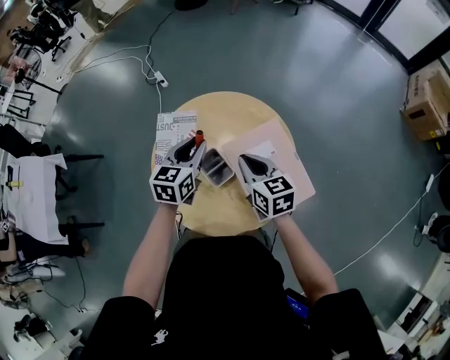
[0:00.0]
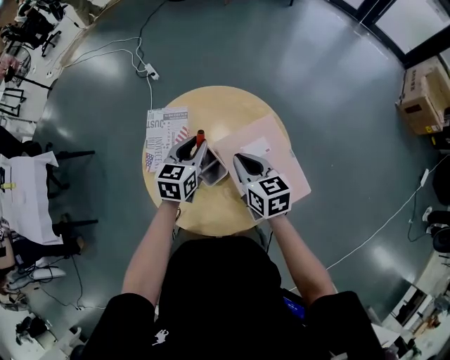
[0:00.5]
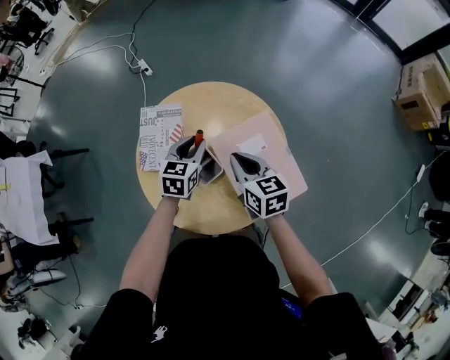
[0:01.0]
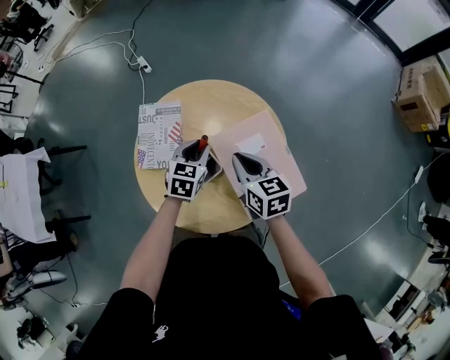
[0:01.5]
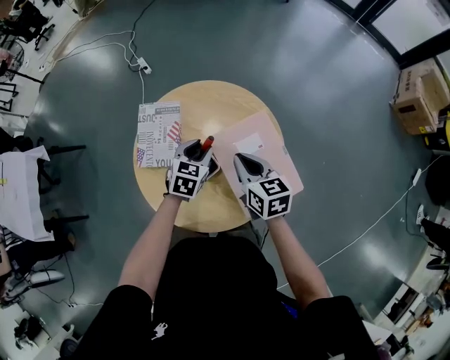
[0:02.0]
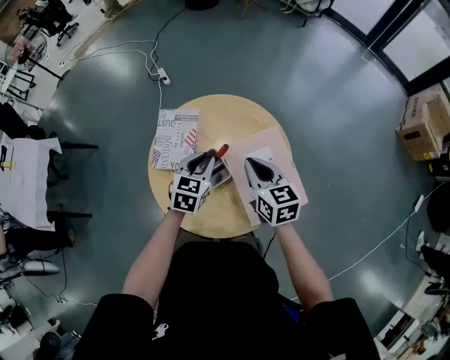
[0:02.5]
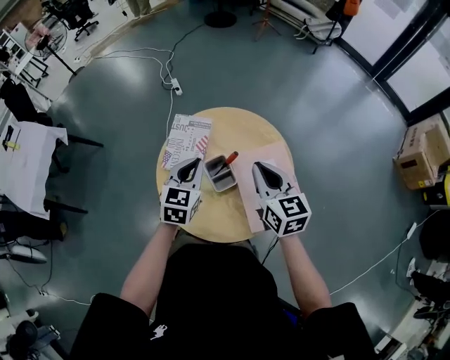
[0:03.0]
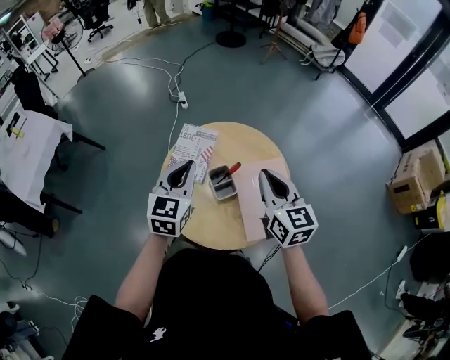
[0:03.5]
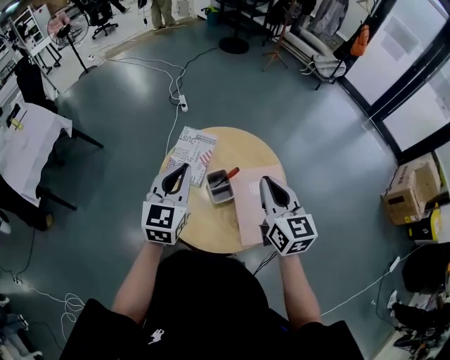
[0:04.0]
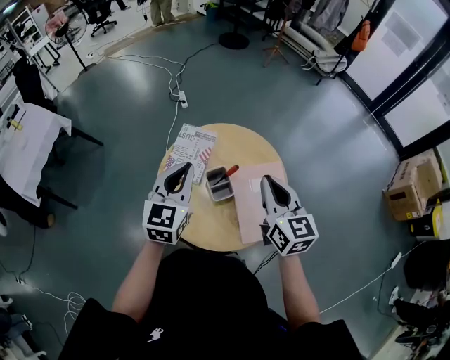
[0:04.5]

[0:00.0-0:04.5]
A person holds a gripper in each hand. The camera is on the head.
0:00.0 to 0:02.0: The left gripper heads downward, covering approximately 10 cm.
0:02.0 to 0:04.5: The left gripper heads upward and to the left, covering roughly 30 cm, tilts its fingers roughly 30 degrees upward, and closes. The right gripper travels upward by roughly 20 cm, and turns by some 30 degrees.

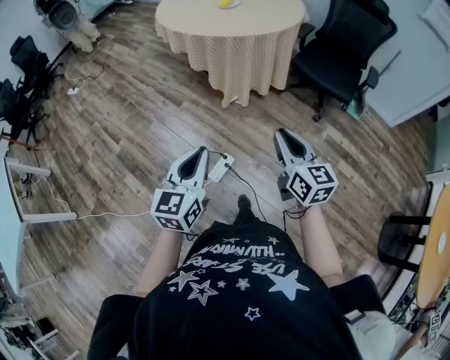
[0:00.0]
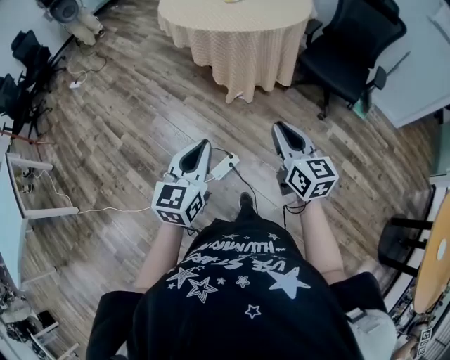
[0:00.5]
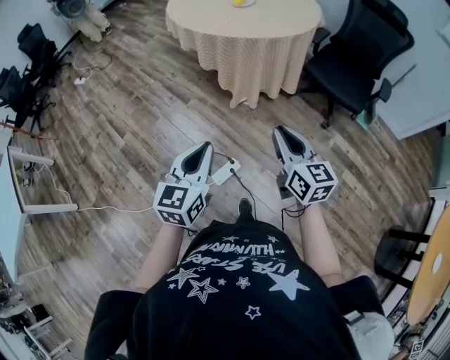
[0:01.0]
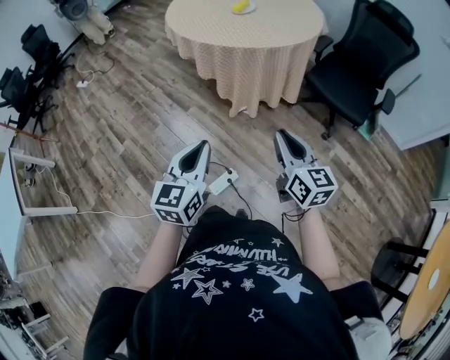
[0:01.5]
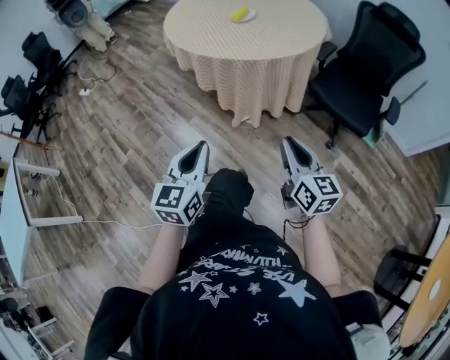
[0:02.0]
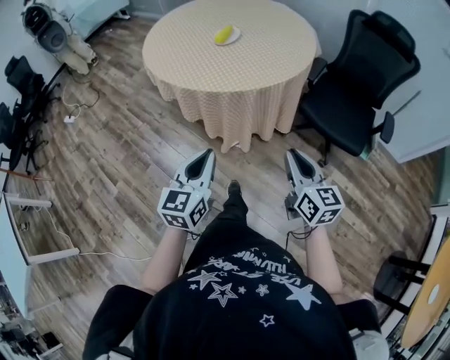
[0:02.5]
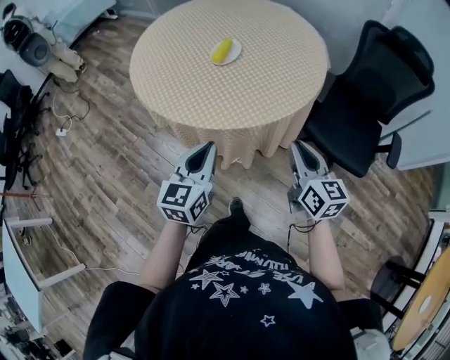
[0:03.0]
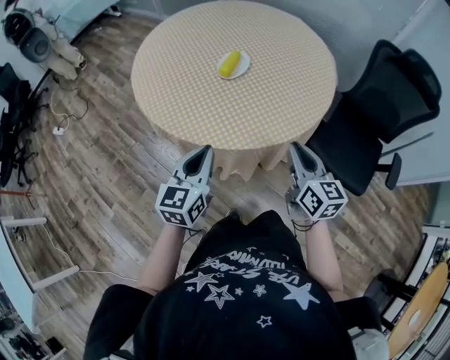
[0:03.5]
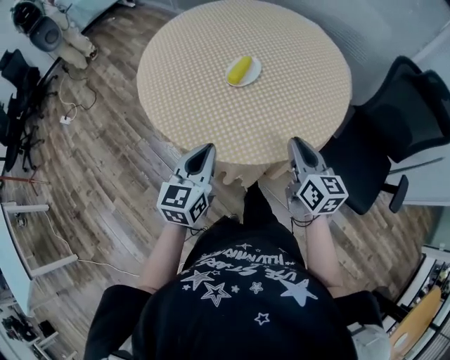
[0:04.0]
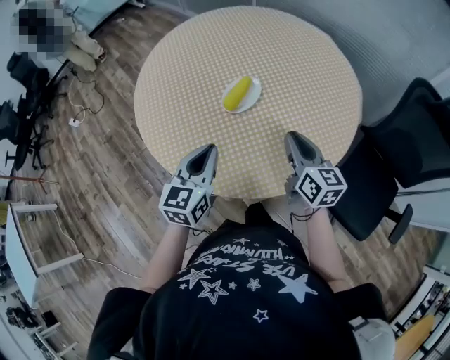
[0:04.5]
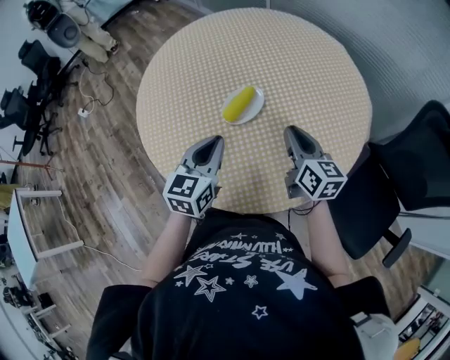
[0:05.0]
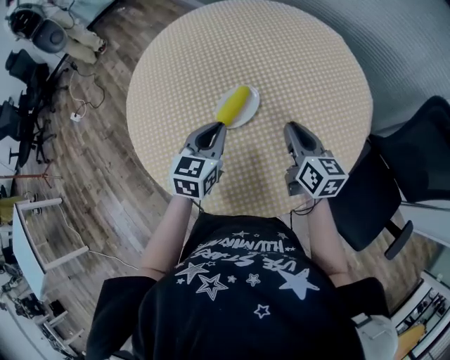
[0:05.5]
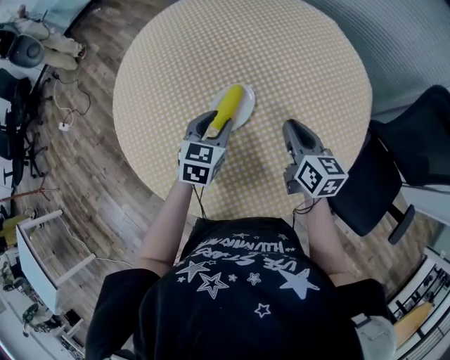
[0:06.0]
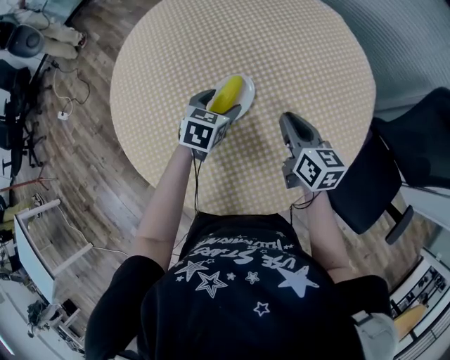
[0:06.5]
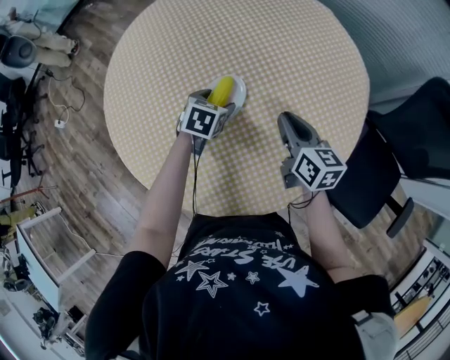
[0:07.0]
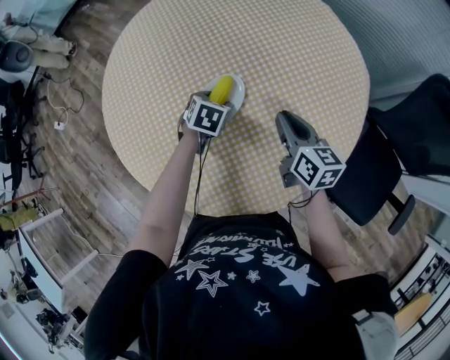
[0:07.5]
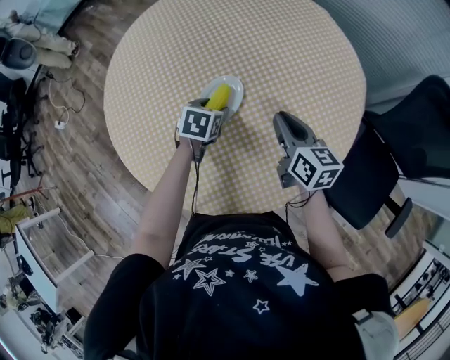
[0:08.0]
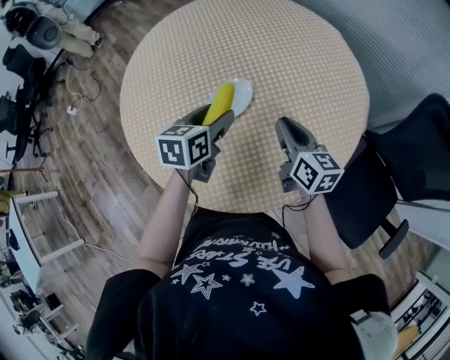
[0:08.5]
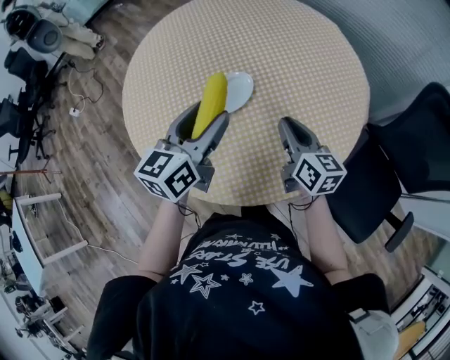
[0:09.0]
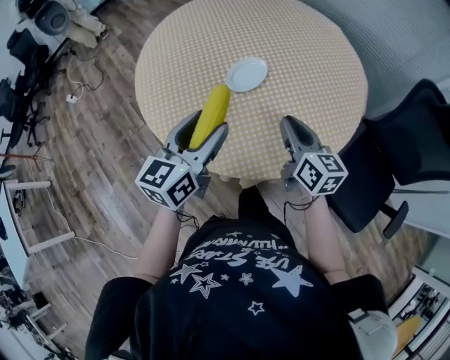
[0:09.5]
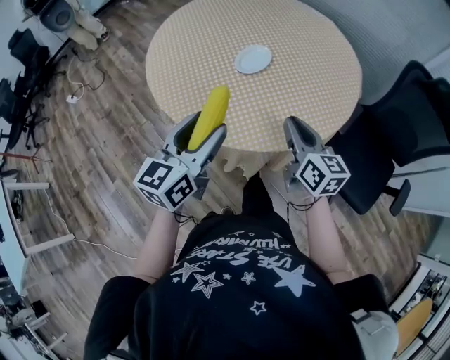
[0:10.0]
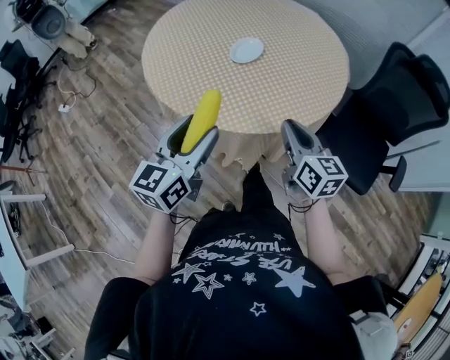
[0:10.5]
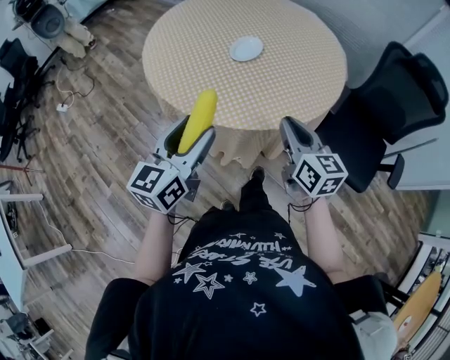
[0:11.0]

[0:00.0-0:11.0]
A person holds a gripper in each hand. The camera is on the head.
0:00.0 to 0:02.0: Both grippers travel together forward, about 20 cm.
0:02.0 to 0:03.5: Both grippers are carried forward, some 40 cm.
0:03.5 to 0:05.5: The grippers both shift forward by roughly 30 cm.
0:05.5 to 0:07.5: The left gripper travels downward and forward by about 20 cm, tips its fingers downward by approximately 40 degrees, and opens its fingers; the right gripper moves approximately 5 cm.
0:07.5 to 0:09.0: The right gripper moves backward, some 5 cm. The left gripper is displaced upward and backward by about 30 cm, and points its fingers roughly 50 degrees further upward.
0:09.0 to 0:11.0: The right gripper travels backward by some 30 cm; the left gripper heads backward and to the left, covering some 35 cm.

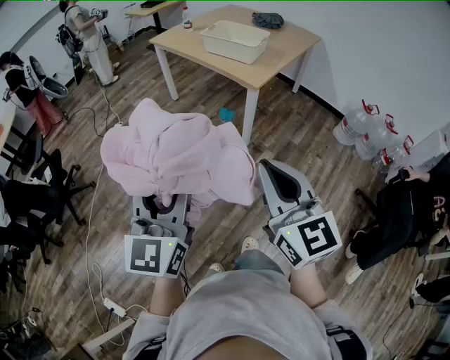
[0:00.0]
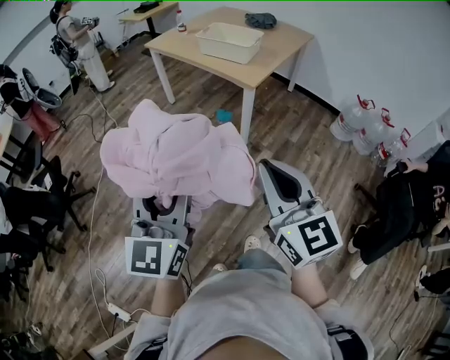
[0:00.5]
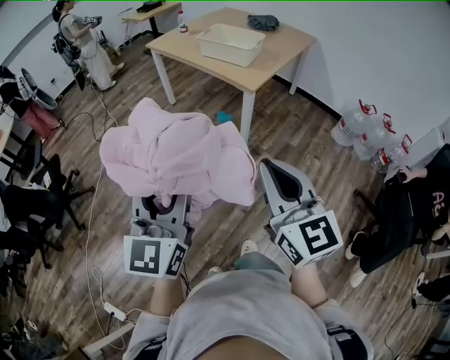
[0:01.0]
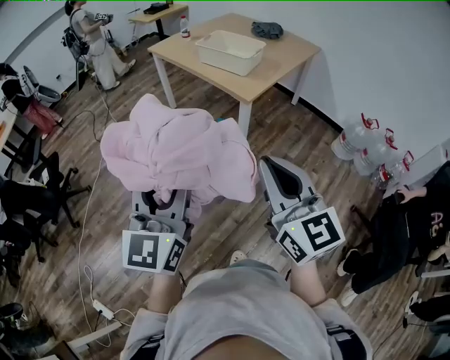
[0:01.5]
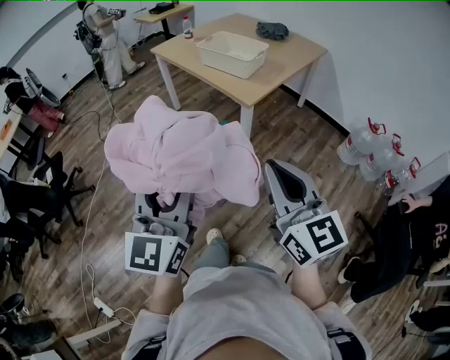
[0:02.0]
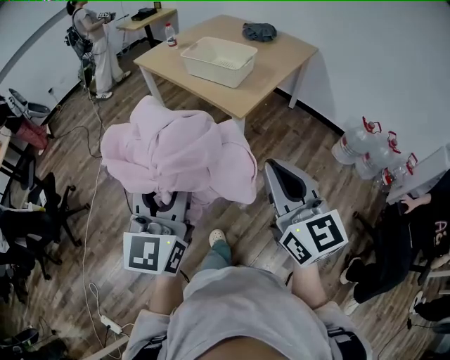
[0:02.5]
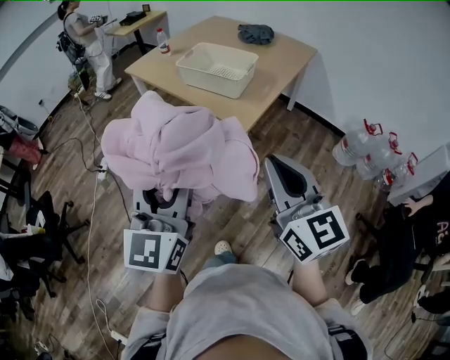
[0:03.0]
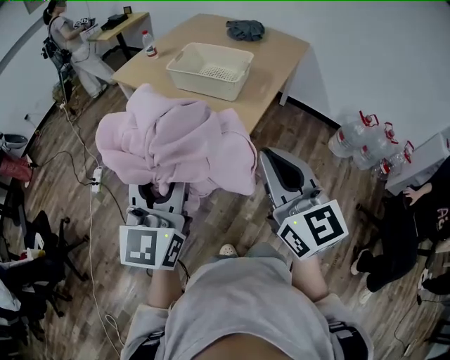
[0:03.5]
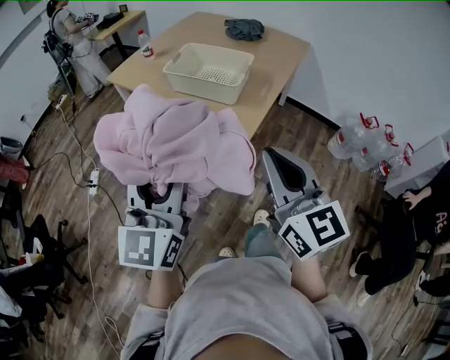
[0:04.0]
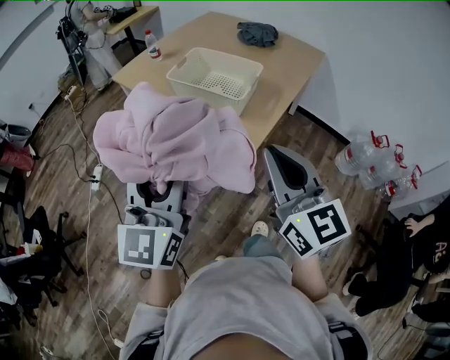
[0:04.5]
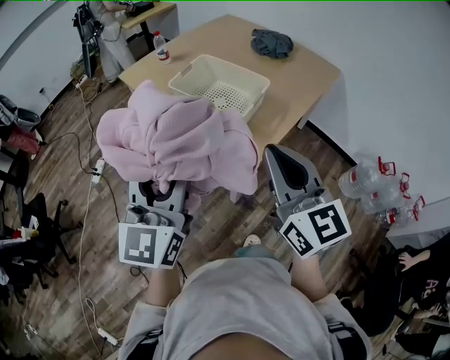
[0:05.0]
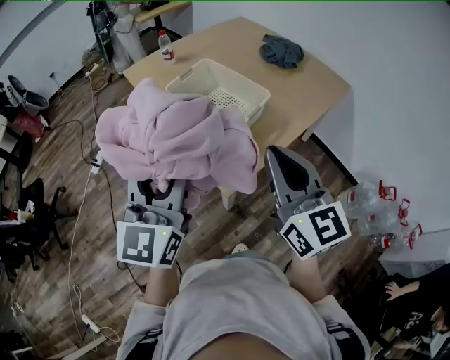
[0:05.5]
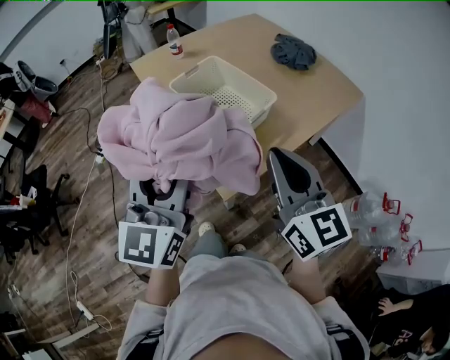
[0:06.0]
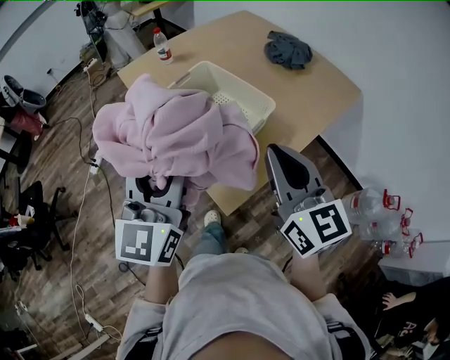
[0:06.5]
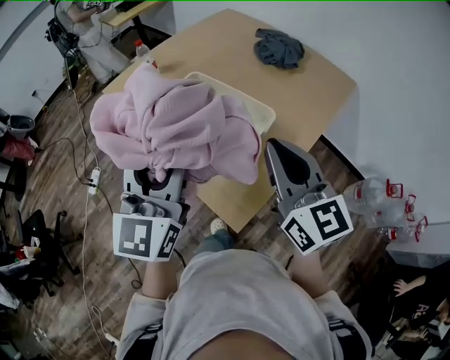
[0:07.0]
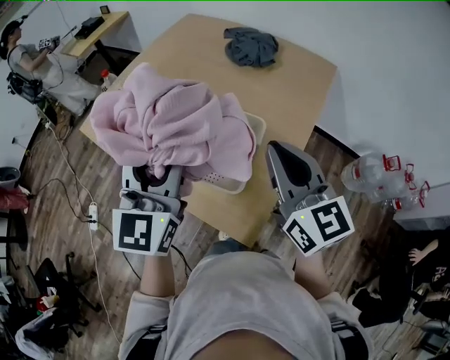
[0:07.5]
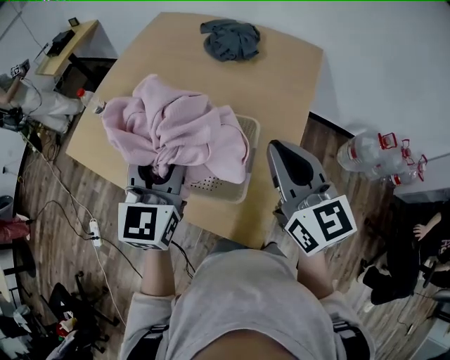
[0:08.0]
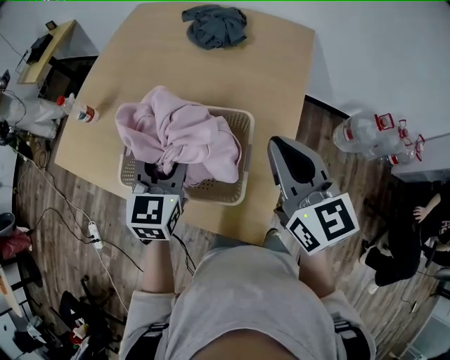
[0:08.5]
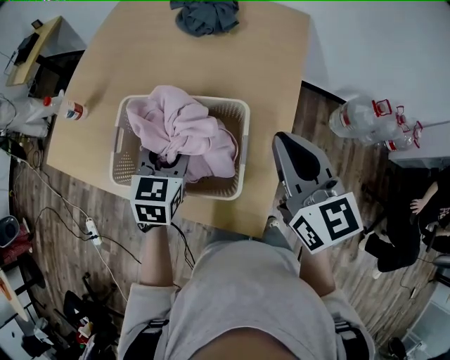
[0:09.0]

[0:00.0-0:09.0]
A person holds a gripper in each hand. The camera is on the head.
0:00.0 to 0:02.0: Both grippers move to the right and forward, roughly 15 cm.
0:02.0 to 0:04.5: The grippers both shift forward by some 35 cm.
0:04.5 to 0:07.0: Both grippers travel together forward, approximately 30 cm.
0:07.0 to 0:09.0: The right gripper moves about 15 cm, and rotates about 30 degrees. Meanwhile the left gripper travels downward by approximately 25 cm, and tips its fingers downward by some 40 degrees.

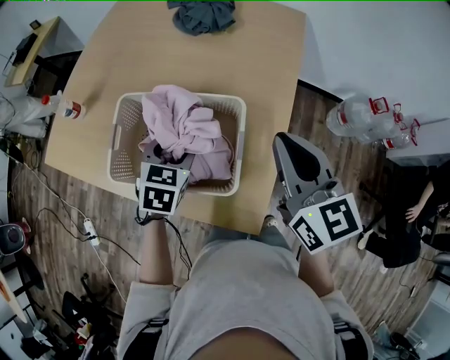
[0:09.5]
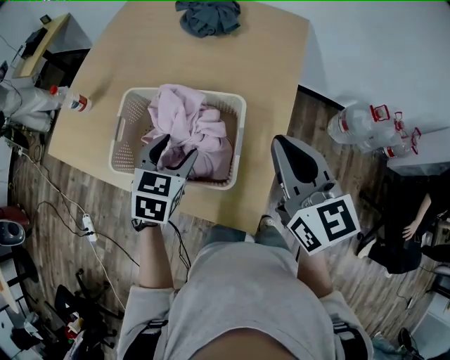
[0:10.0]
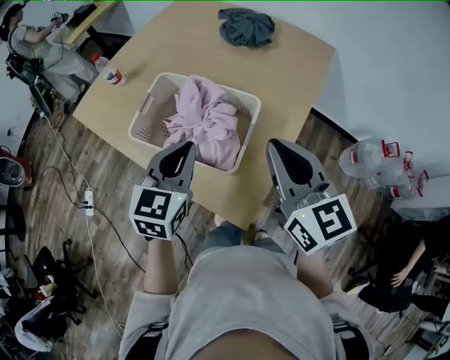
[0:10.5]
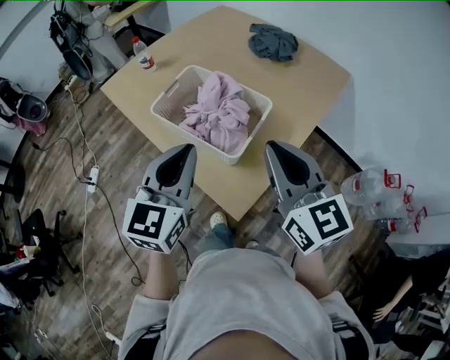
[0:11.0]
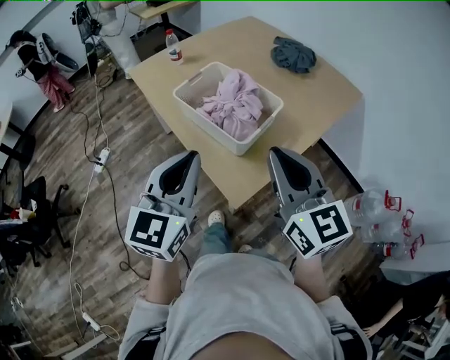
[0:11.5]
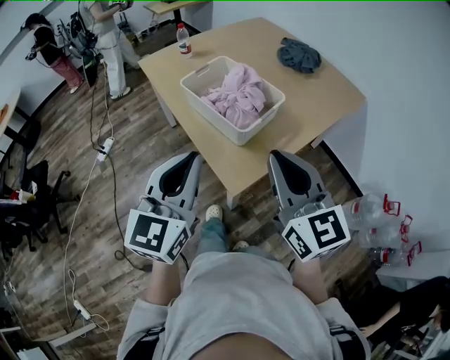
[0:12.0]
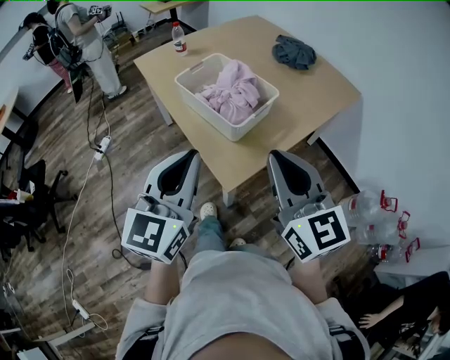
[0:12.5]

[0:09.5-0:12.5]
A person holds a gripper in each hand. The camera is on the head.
0:09.5 to 0:11.0: The right gripper ends up approximately 15 cm from where it was, and turns by some 30 degrees; the left gripper shifts by approximately 30 cm, points its fingers about 40 degrees further upward, and closes up.
0:11.0 to 0:12.5: The two grippers go about 15 cm backward.
